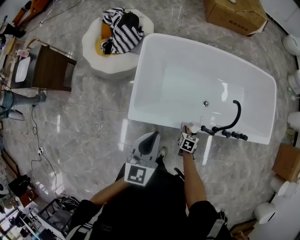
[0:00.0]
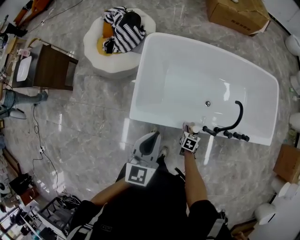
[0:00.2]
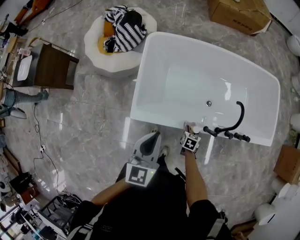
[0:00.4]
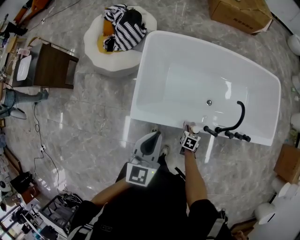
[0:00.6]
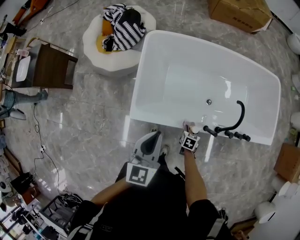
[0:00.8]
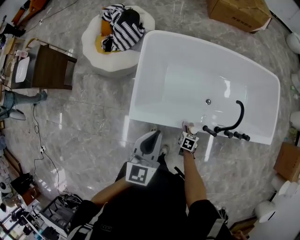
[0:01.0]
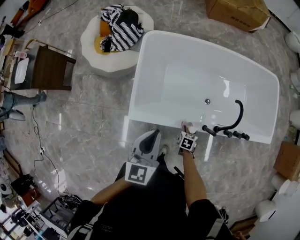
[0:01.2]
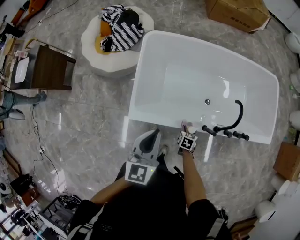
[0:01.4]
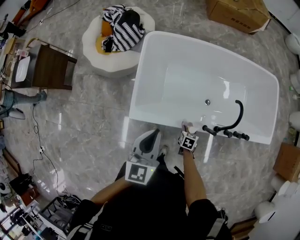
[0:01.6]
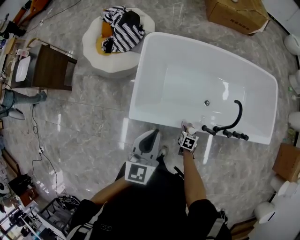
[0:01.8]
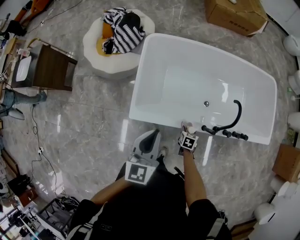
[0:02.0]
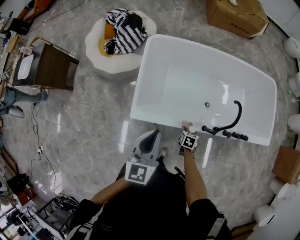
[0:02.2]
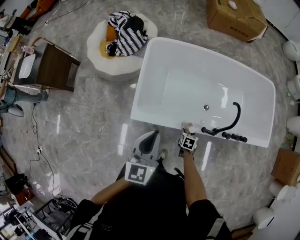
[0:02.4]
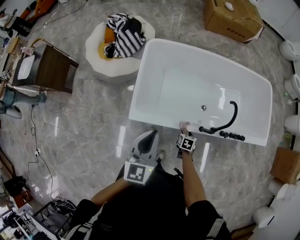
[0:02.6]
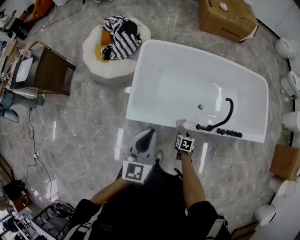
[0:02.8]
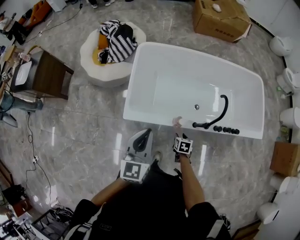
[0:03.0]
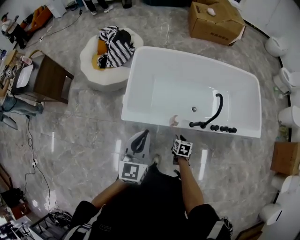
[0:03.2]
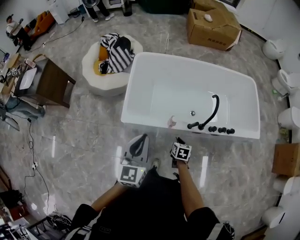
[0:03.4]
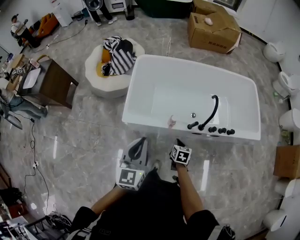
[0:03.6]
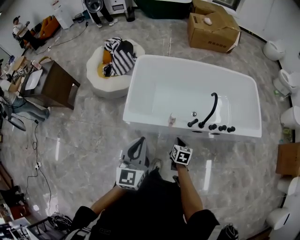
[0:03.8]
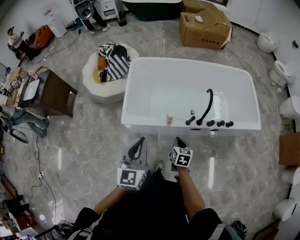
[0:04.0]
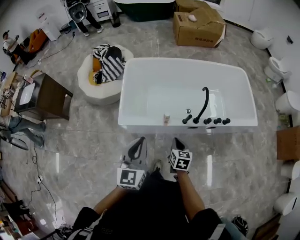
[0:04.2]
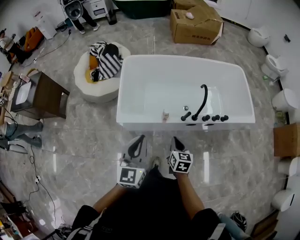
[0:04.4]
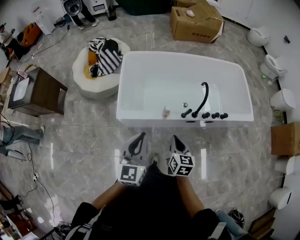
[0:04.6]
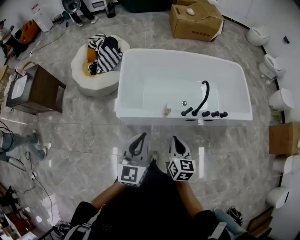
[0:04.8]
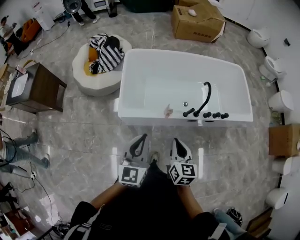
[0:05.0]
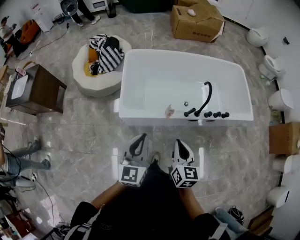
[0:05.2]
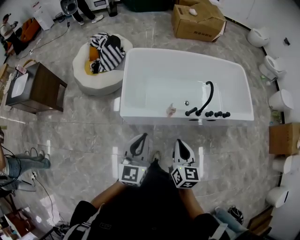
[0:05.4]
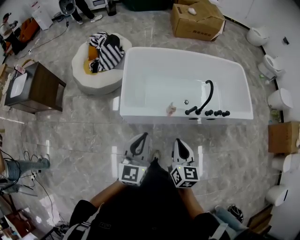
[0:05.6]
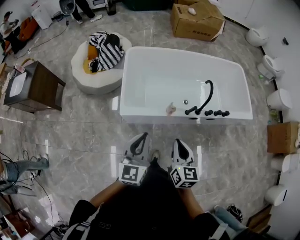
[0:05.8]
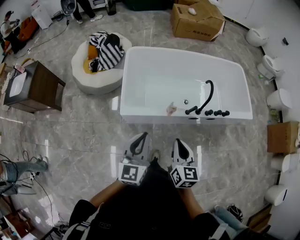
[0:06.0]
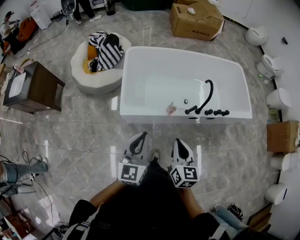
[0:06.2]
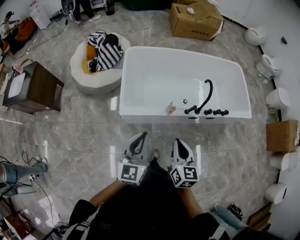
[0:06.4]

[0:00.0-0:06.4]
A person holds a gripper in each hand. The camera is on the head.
0:00.0 to 0:01.6: The grippers make only small movements.
0:01.6 to 0:03.2: The right gripper is displaced backward and upward by approximately 15 cm, and closes its fingers; the left gripper shifts roughly 10 cm backward.
0:03.2 to 0:04.8: The left gripper shifts approximately 10 cm backward. The right gripper shifts some 30 cm upward and backward, angles its fingers upward, by about 30 degrees, and closes.
0:04.8 to 0:06.4: The right gripper changes place by some 5 cm. The left gripper ends up about 5 cm from where it was.

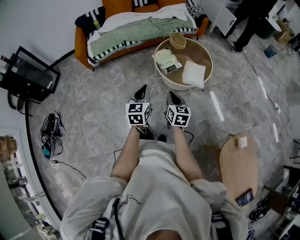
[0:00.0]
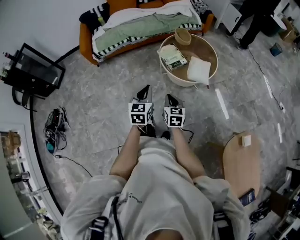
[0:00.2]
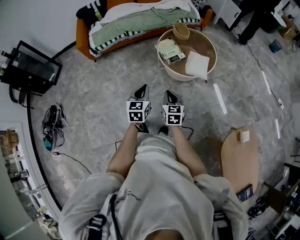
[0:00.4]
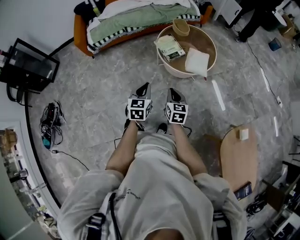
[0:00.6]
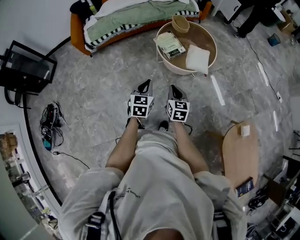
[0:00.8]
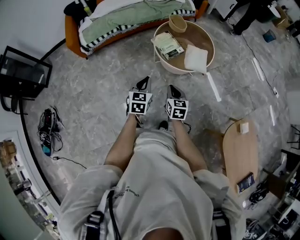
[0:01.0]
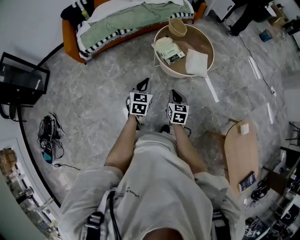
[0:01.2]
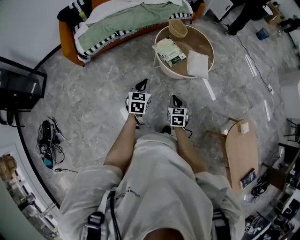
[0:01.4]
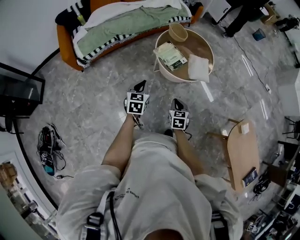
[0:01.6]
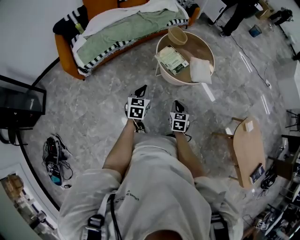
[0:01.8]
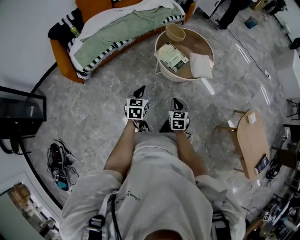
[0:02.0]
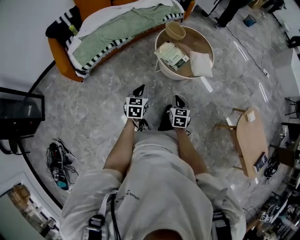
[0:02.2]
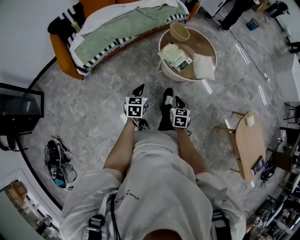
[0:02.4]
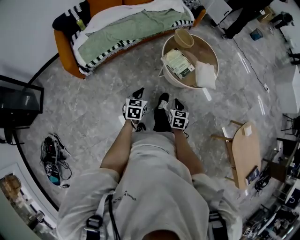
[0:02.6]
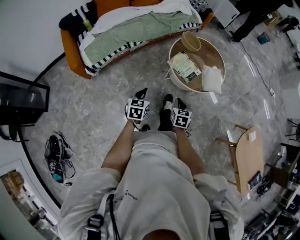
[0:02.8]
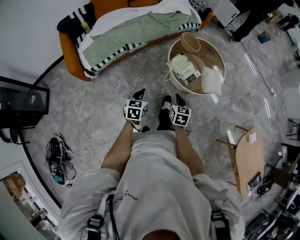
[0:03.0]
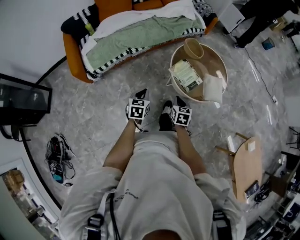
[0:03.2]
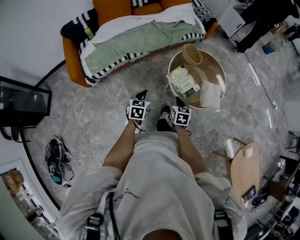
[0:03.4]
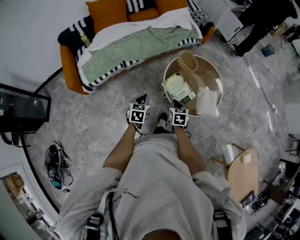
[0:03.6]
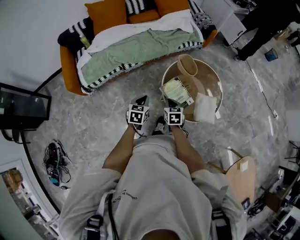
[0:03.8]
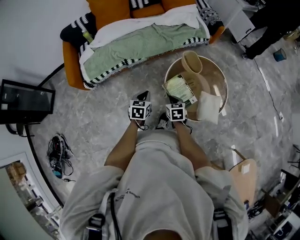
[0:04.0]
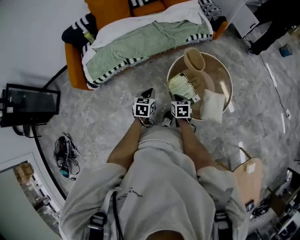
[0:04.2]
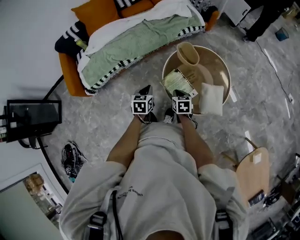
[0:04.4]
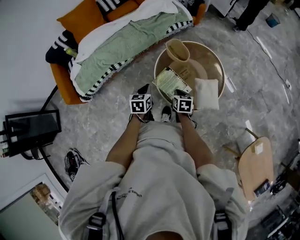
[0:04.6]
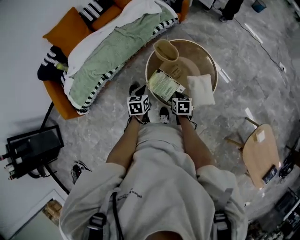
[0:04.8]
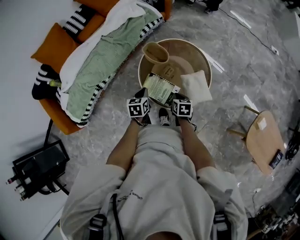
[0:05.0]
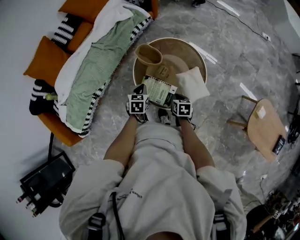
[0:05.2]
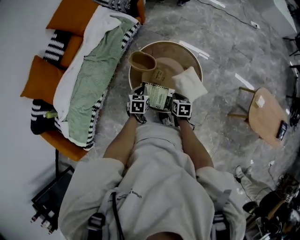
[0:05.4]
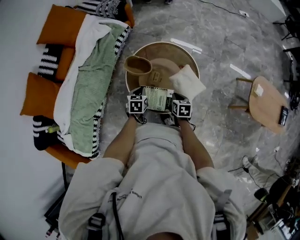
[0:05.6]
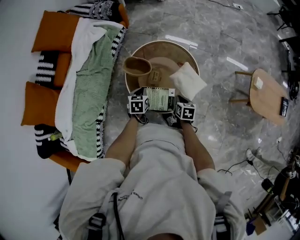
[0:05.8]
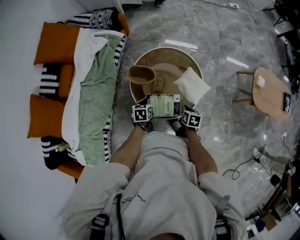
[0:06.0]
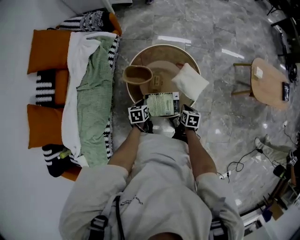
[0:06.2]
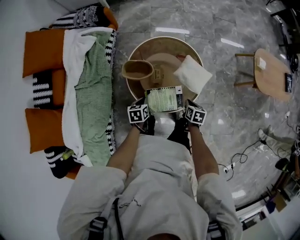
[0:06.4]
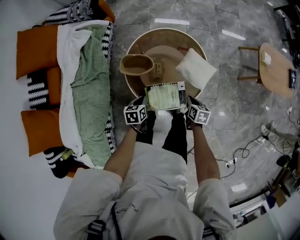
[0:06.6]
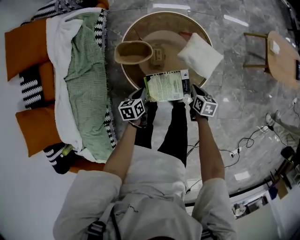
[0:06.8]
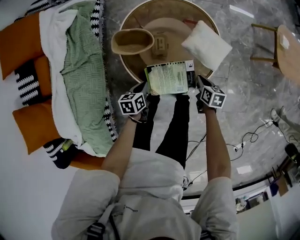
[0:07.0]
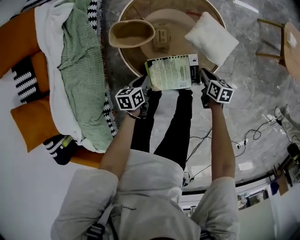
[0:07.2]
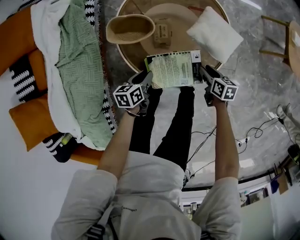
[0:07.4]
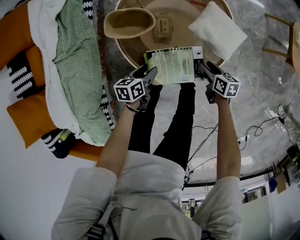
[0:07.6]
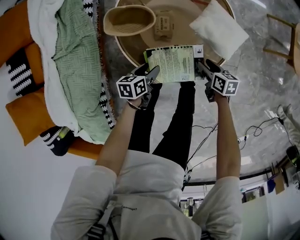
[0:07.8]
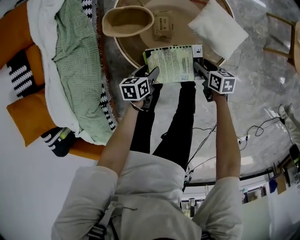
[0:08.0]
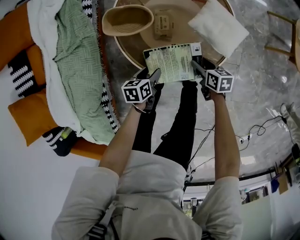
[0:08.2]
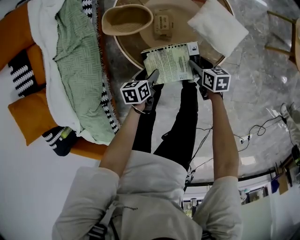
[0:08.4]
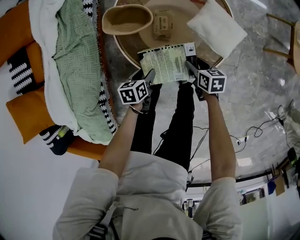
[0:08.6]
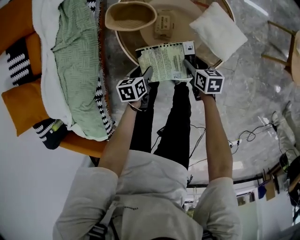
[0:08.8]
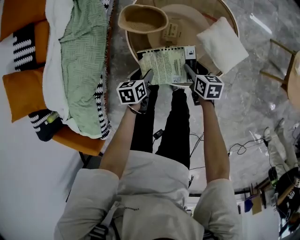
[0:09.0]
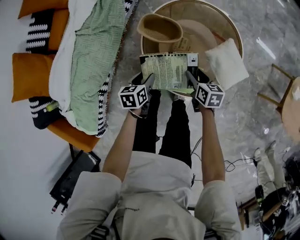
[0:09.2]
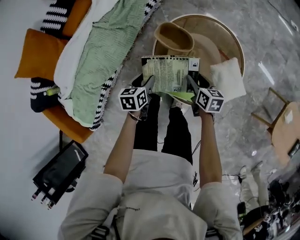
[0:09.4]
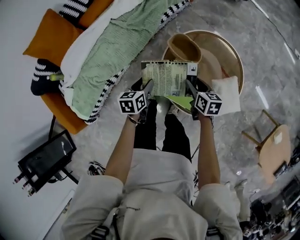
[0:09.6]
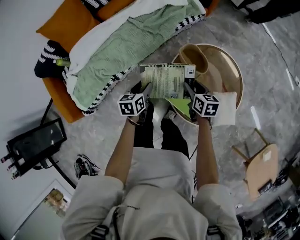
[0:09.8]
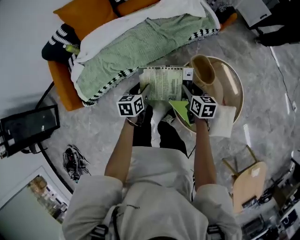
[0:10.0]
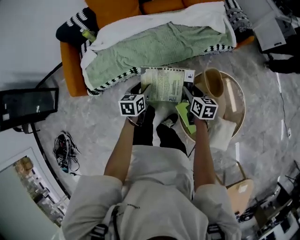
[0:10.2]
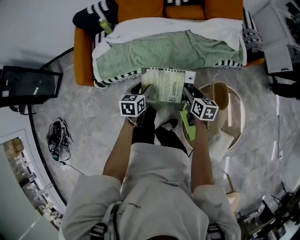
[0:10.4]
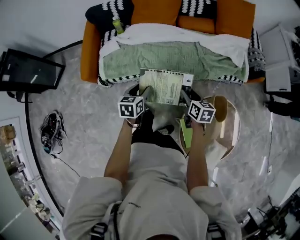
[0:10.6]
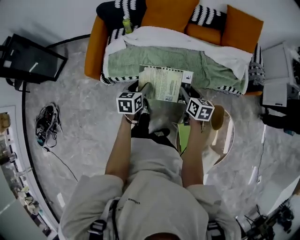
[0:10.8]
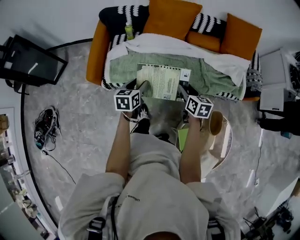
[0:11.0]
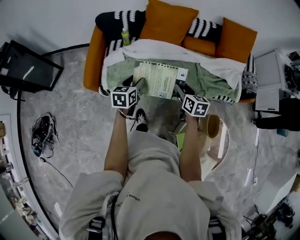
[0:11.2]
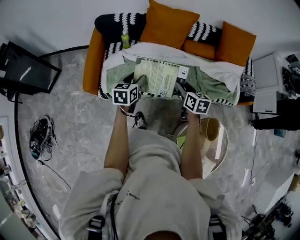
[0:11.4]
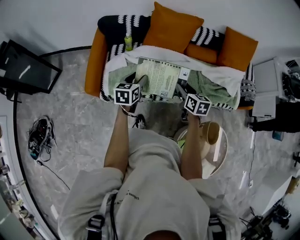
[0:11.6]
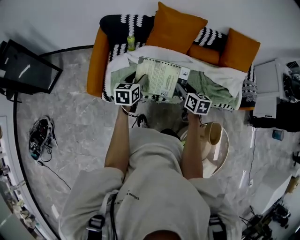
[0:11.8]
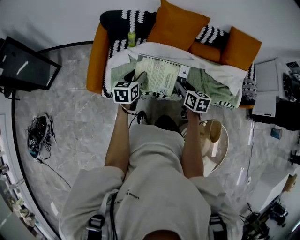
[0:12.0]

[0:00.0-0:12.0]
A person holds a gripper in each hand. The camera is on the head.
0:00.0 to 0:01.6: The right gripper is displaced downward and to the left by about 15 cm, and rotates roughly 30 degrees. The left gripper shifts roughly 20 cm to the left, forward and downward, and swivels approximately 20 degrees.
0:01.6 to 0:03.0: The grippers both shift to the left and forward by roughly 15 cm.
0:03.0 to 0:04.4: The grippers both shift forward and to the right by approximately 25 cm.
0:04.4 to 0:06.0: The left gripper shifts by approximately 25 cm, and swivels approximately 50 degrees. Meanwhile the right gripper shifts by roughly 15 cm, and rotates around the line of its fingers by roughly 50 degrees, clockwise from behind.
0:06.0 to 0:07.6: The two grippers go some 20 cm downward. The left gripper rotates approximately 20 degrees, and opens its fingers, while the right gripper opens.
0:07.6 to 0:09.0: The right gripper shifts approximately 10 cm to the left.
0:09.0 to 0:10.4: The left gripper shifts by approximately 40 cm, and turns by roughly 60 degrees, while the right gripper shifts by roughly 40 cm, and swivels roughly 60 degrees.
0:10.4 to 0:12.0: The grippers both shift to the left, forward and upward by approximately 30 cm.

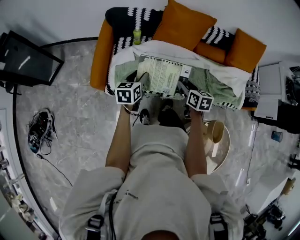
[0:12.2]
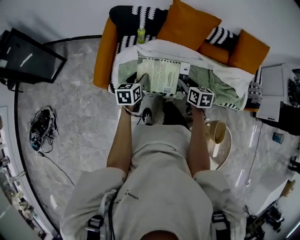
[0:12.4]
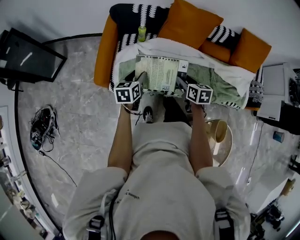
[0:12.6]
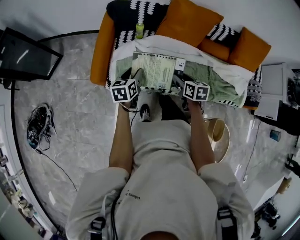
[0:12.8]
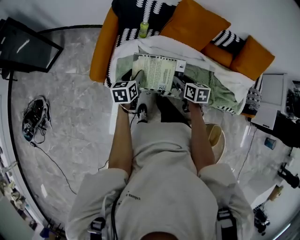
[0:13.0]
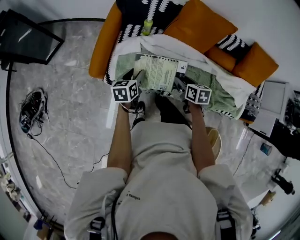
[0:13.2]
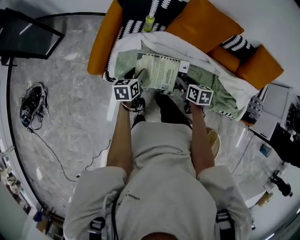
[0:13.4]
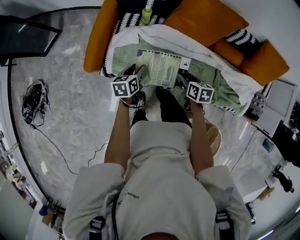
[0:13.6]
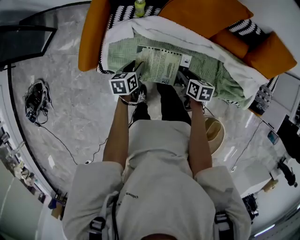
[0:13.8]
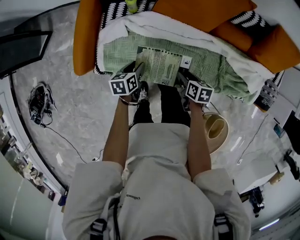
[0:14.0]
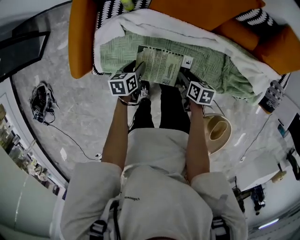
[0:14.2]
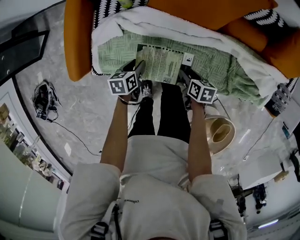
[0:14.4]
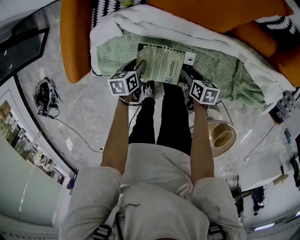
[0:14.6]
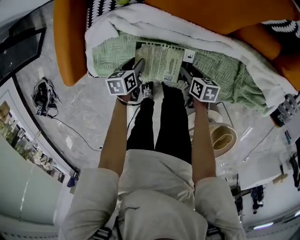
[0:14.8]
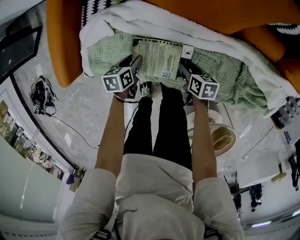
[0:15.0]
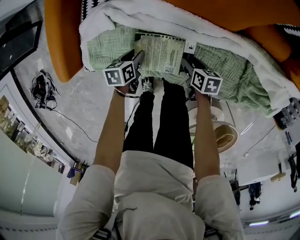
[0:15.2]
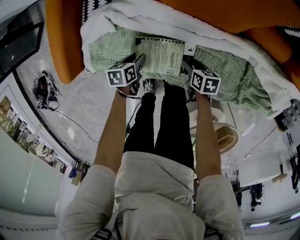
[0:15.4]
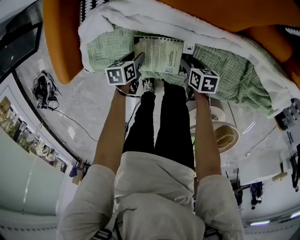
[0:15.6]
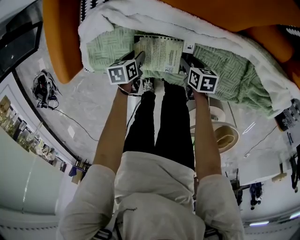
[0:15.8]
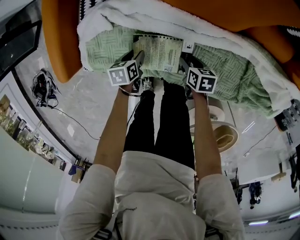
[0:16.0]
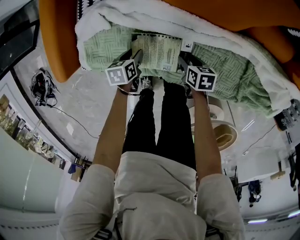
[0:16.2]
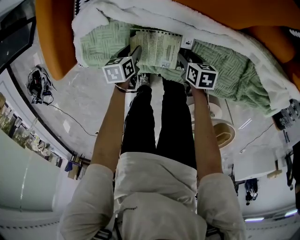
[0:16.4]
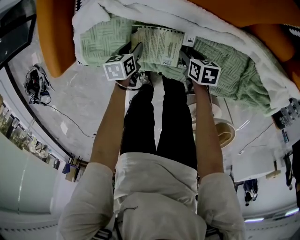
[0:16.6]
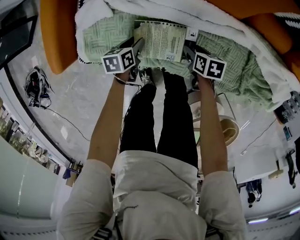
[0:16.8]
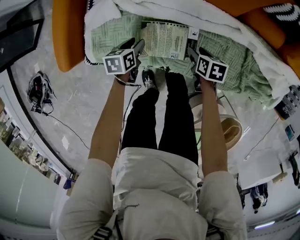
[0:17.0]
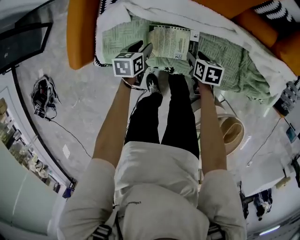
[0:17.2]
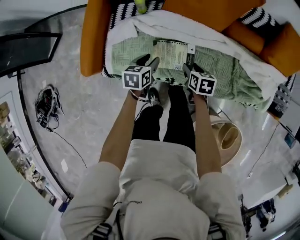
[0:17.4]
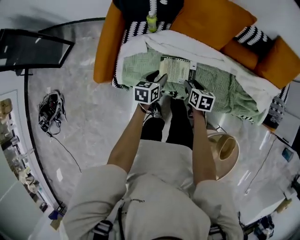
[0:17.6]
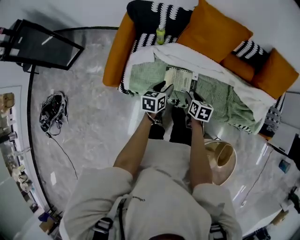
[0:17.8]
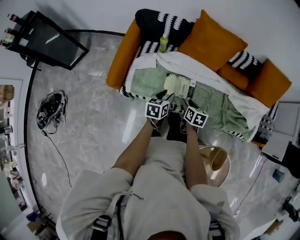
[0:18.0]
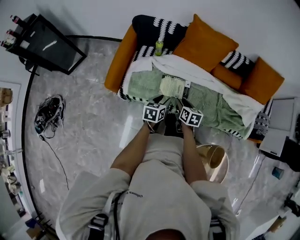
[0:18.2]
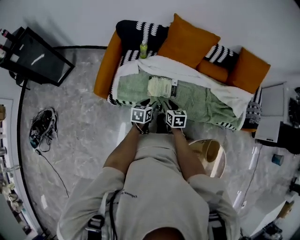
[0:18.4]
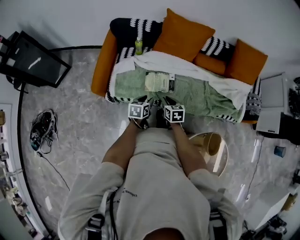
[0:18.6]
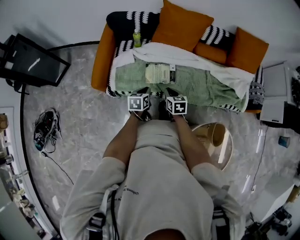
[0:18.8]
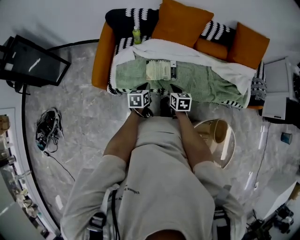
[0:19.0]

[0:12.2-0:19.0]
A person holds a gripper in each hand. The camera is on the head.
0:12.2 to 0:13.6: The grippers both shift downward and forward by roughly 15 cm. The left gripper rotates approximately 20 degrees.
0:13.6 to 0:15.0: The grippers both shift downward by approximately 25 cm. The left gripper turns by roughly 20 degrees.
0:15.0 to 0:16.2: The grippers move only a little.
0:16.2 to 0:17.6: The grippers both shift upward by roughly 25 cm. The right gripper changes its angle by some 20 degrees; the left gripper changes its angle by roughly 30 degrees.
0:17.6 to 0:19.0: The grippers both shift backward and upward by roughly 15 cm. The left gripper closes its fingers; the right gripper closes up.
